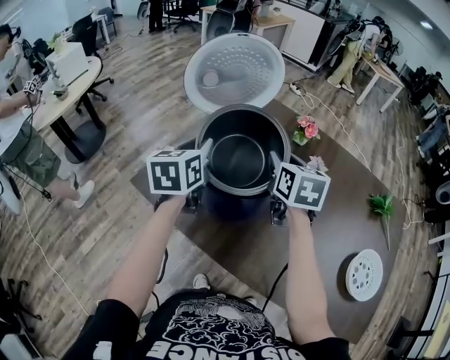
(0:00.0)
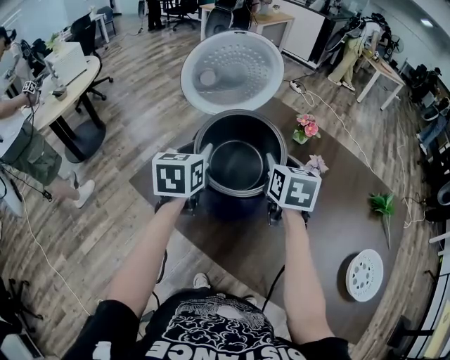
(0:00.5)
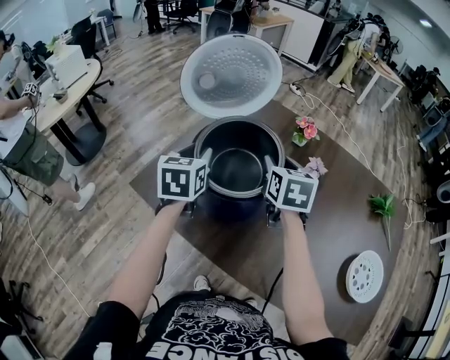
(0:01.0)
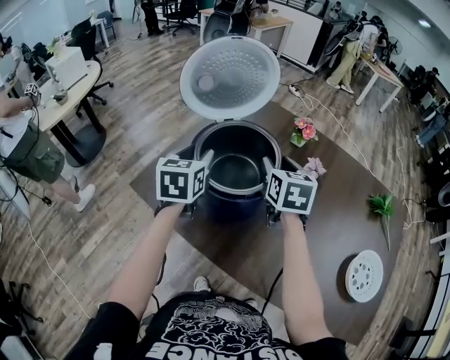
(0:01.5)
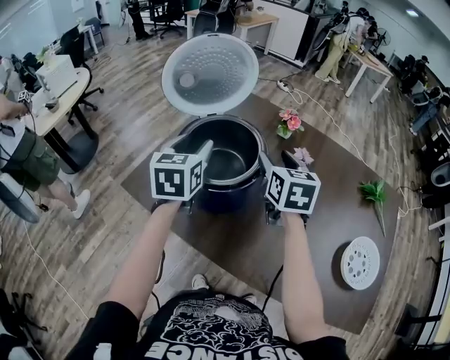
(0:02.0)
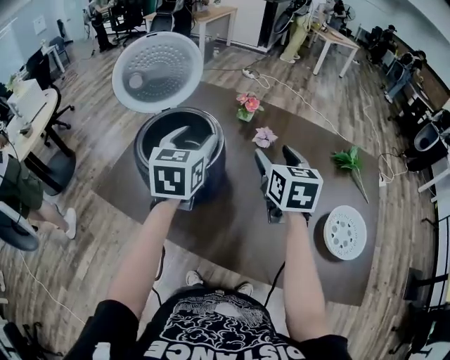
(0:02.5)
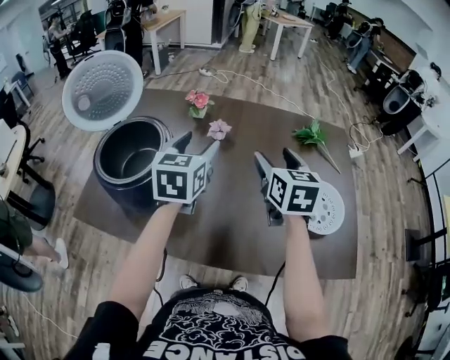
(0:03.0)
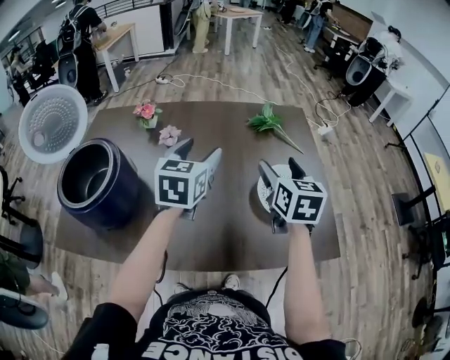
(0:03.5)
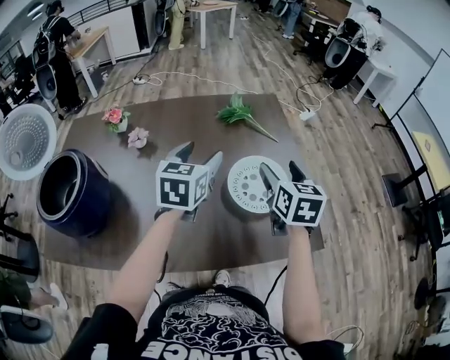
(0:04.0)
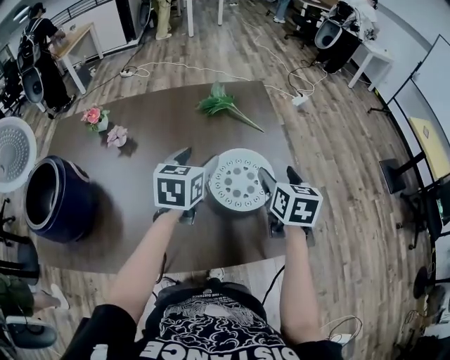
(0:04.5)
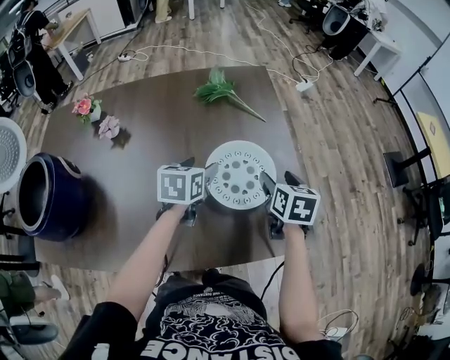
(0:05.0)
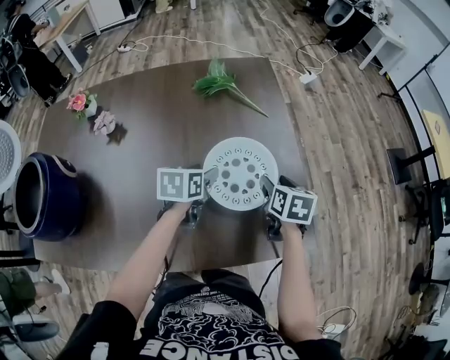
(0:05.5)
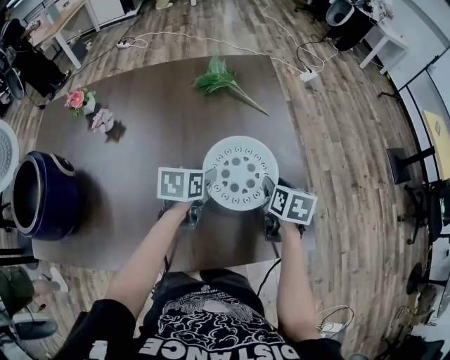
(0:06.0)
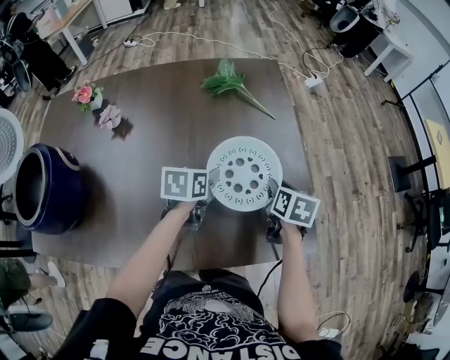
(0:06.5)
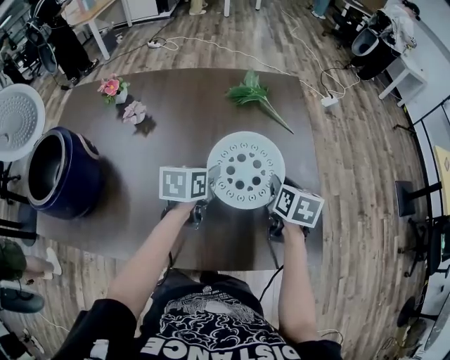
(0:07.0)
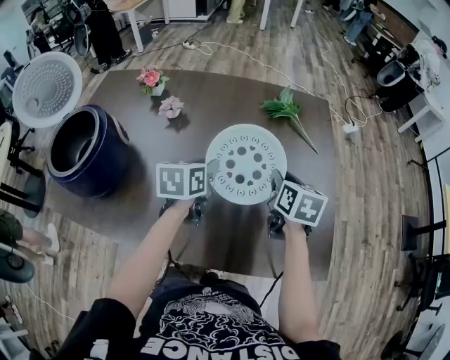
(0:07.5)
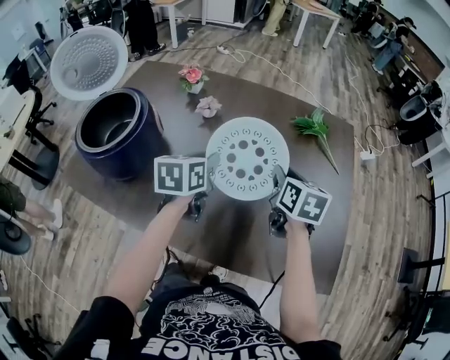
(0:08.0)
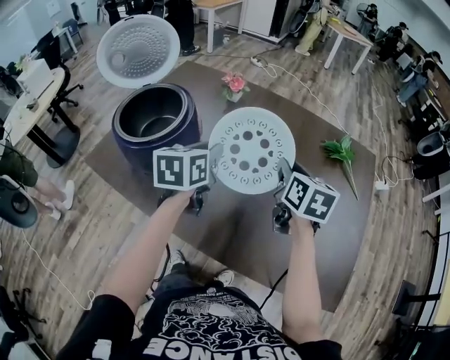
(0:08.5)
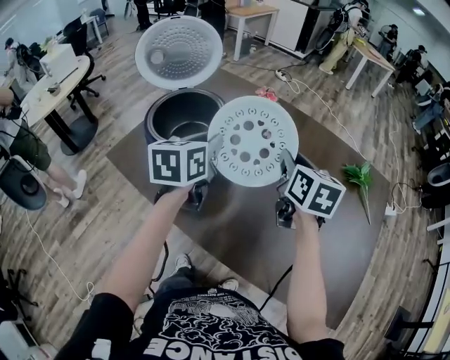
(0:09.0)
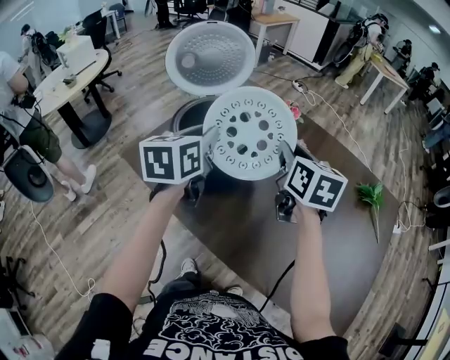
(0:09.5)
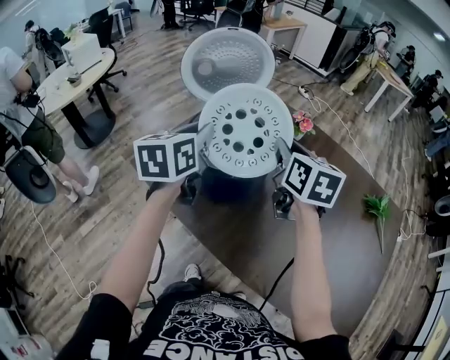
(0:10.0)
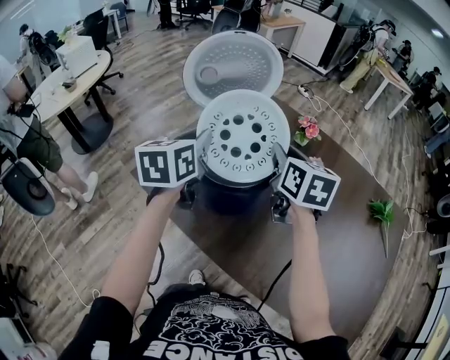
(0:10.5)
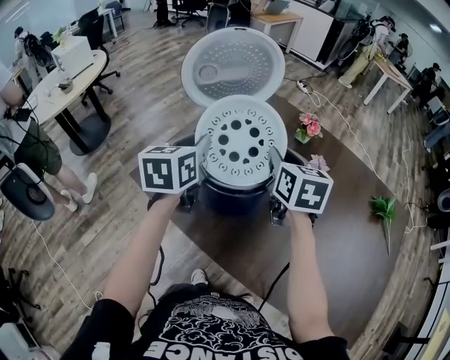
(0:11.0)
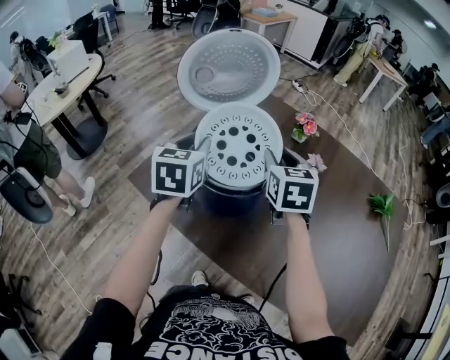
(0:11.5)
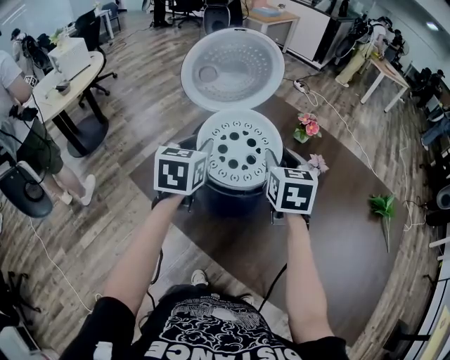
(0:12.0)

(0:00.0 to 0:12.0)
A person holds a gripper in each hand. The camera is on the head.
0:00.0 - 0:02.0: The grippers move only a little.
0:02.0 - 0:04.0: The pair of grippers is taken roughly 50 cm. The left gripper turns by approximately 50 degrees; the right gripper swivels roughly 40 degrees.
0:04.0 - 0:06.0: The left gripper shifts about 20 cm downward, swivels some 30 degrees, and closes its fingers. Meanwhile the right gripper moves downward and to the right, some 20 cm, swivels approximately 30 degrees, and closes its fingers.
0:06.0 - 0:08.0: The left gripper moves roughly 30 cm, and turns by roughly 30 degrees. Meanwhile the right gripper shifts by roughly 30 cm, and swivels some 30 degrees.
0:08.0 - 0:10.0: The left gripper changes place by some 40 cm, and rotates about 30 degrees; the right gripper shifts by approximately 40 cm, and turns by about 30 degrees.
0:10.0 - 0:12.0: The right gripper travels downward by some 5 cm. The left gripper travels downward and forward by approximately 10 cm.

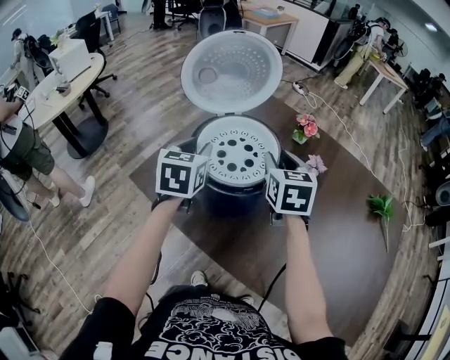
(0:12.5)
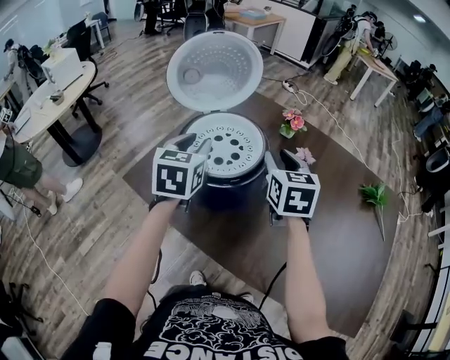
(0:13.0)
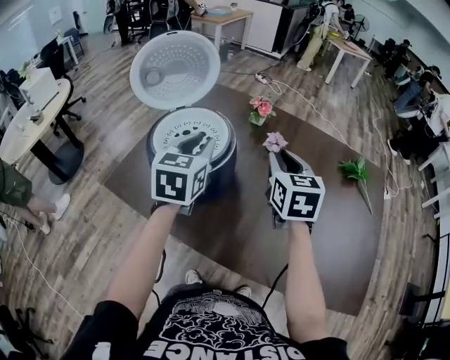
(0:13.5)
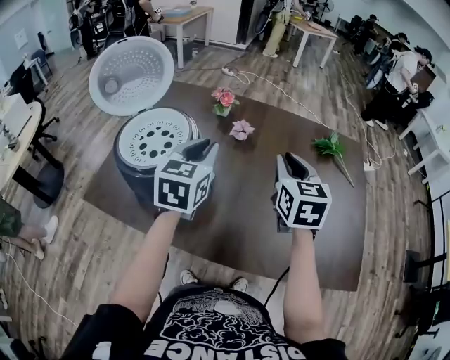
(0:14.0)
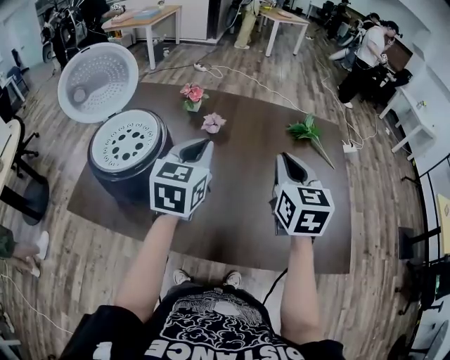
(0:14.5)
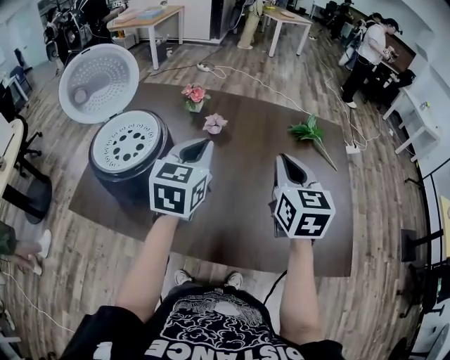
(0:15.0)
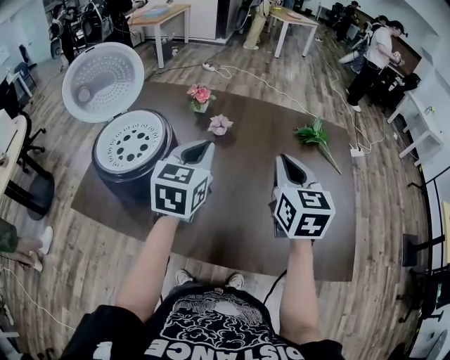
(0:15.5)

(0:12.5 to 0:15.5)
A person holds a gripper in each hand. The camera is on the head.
0:12.5 - 0:14.0: The right gripper moves to the right and backward, approximately 25 cm, and turns by some 20 degrees, while the left gripper shifts roughly 25 cm to the right, and rotates approximately 30 degrees.
0:14.0 - 0:15.5: Both grippers travel together to the right, some 5 cm.

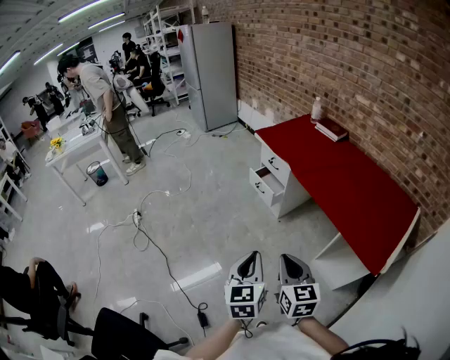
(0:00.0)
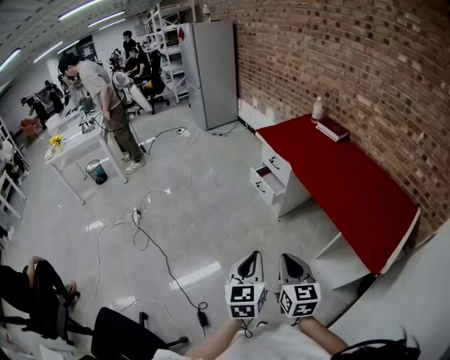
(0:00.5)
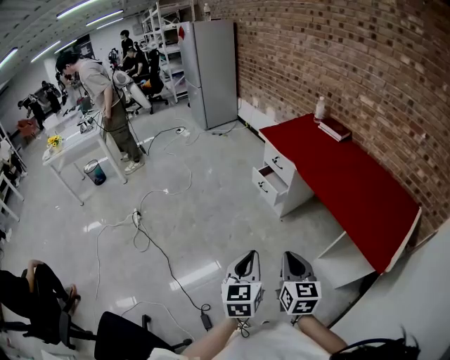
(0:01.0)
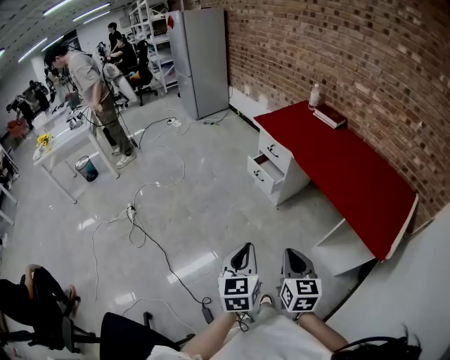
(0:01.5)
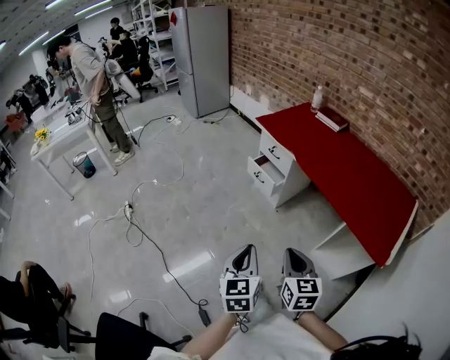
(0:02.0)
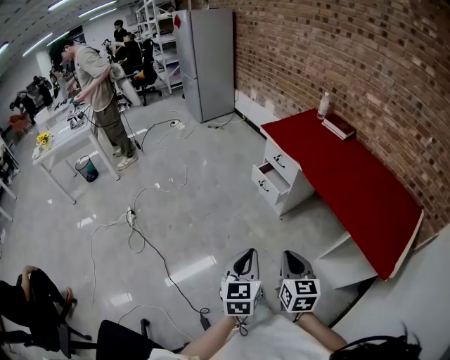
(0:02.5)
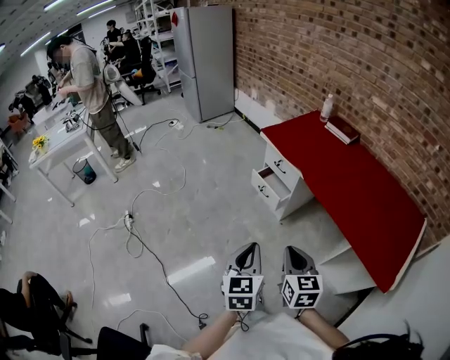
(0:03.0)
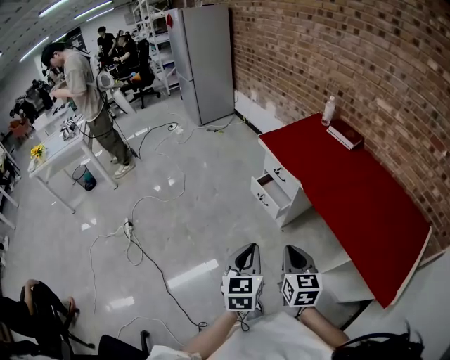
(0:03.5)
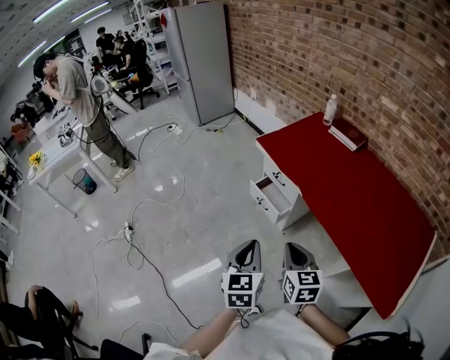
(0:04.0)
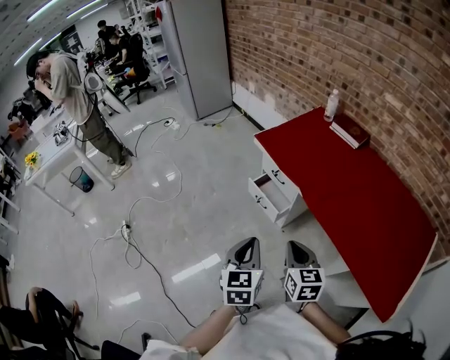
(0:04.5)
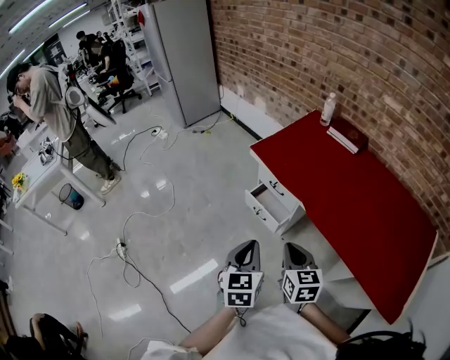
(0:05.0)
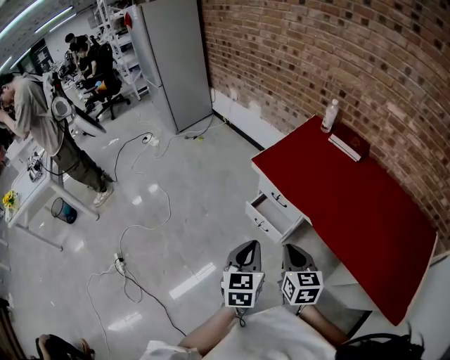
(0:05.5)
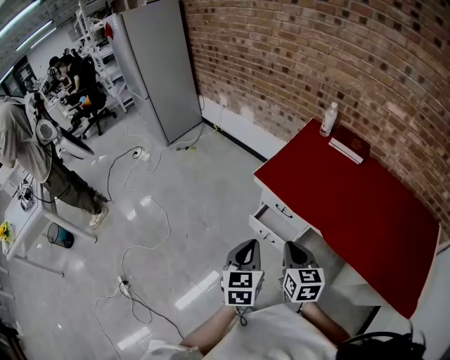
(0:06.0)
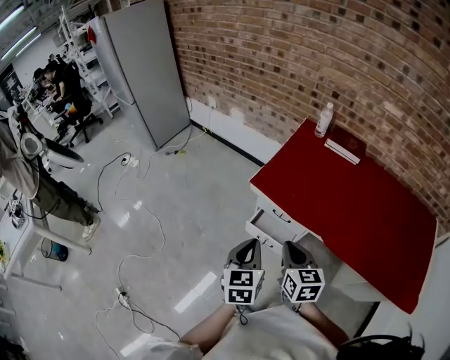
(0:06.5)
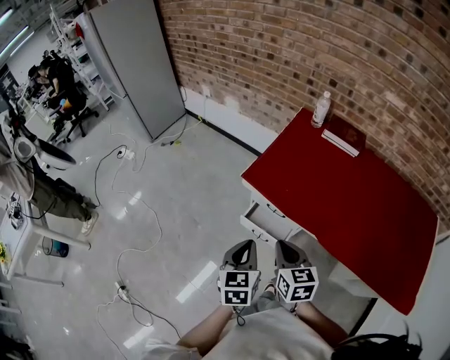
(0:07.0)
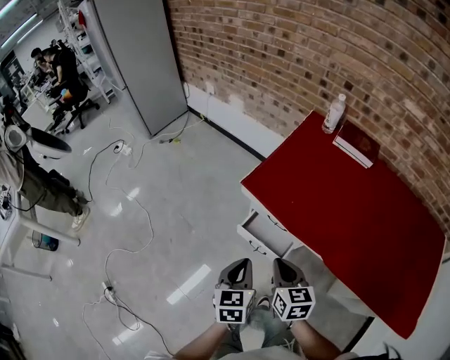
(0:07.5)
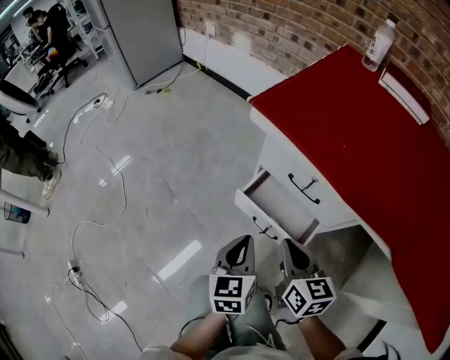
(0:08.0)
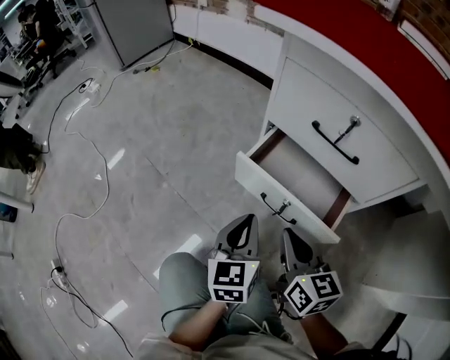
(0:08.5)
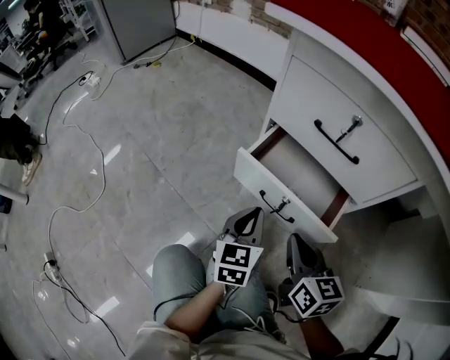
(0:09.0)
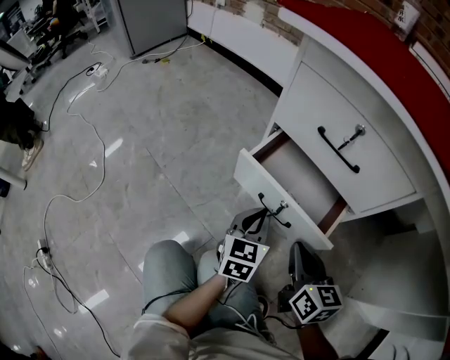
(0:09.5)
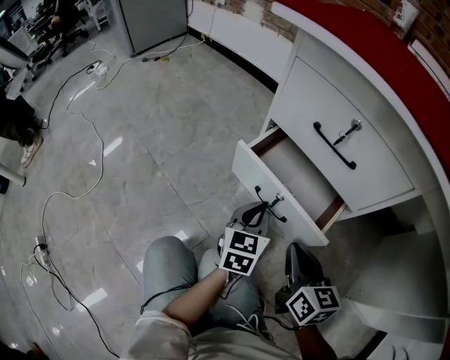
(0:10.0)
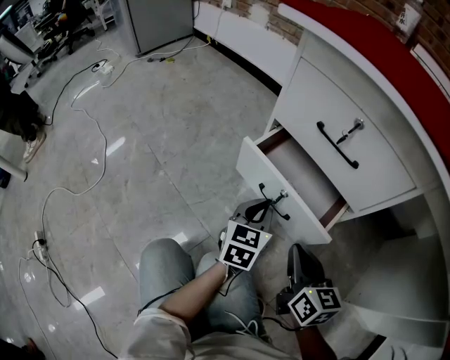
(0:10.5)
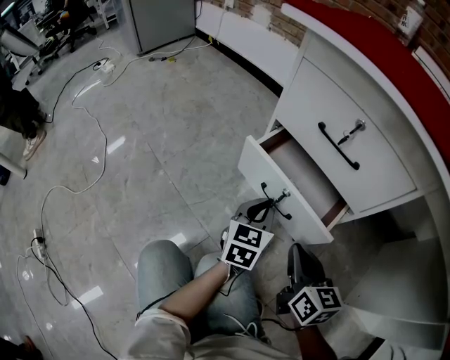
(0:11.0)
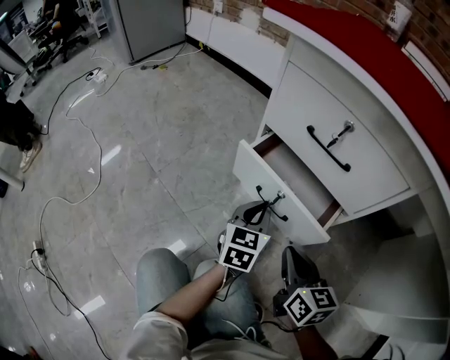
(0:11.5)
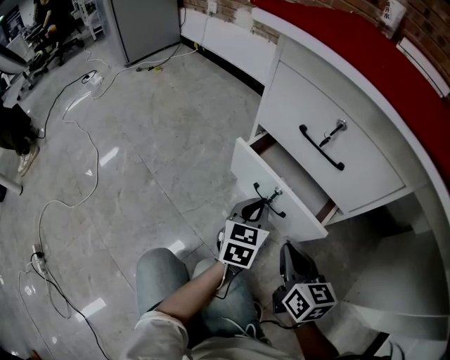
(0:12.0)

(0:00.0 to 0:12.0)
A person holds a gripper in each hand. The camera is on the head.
0:00.0 - 0:02.0: The right gripper ends up about 5 cm from where it was; the left gripper travels to the left by about 10 cm.
0:02.0 - 0:04.0: The grippers both shift forward by about 30 cm.
0:04.0 - 0:06.0: Both grippers travel together forward and to the left, about 30 cm.
0:06.0 - 0:08.0: Both grippers move downward, some 40 cm.
0:08.0 - 0:10.0: Both grippers travel together downward, approximately 20 cm.
0:10.0 - 0:12.0: There are only small adjustments of the grippers.
